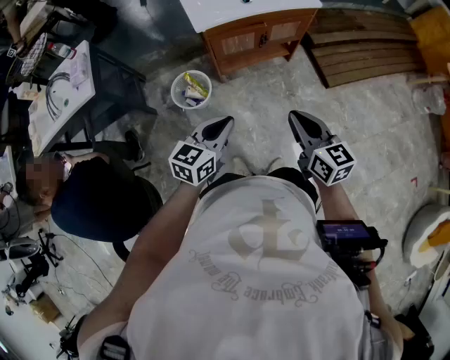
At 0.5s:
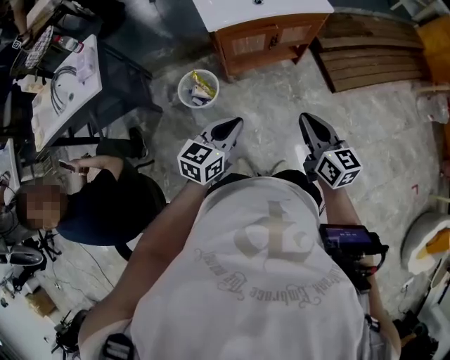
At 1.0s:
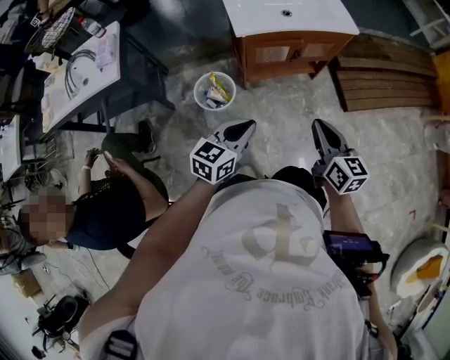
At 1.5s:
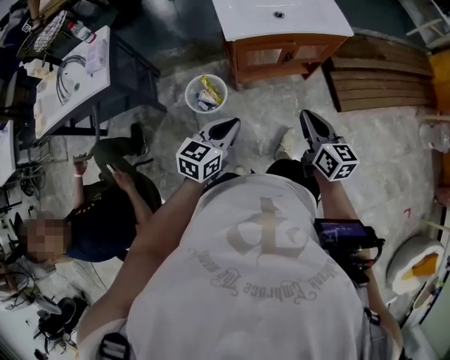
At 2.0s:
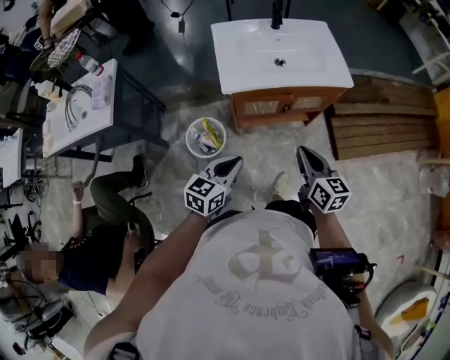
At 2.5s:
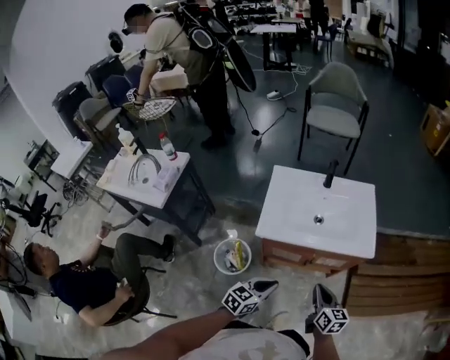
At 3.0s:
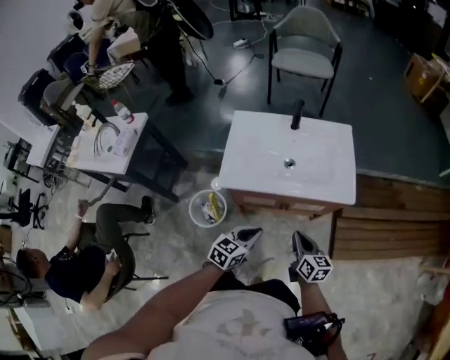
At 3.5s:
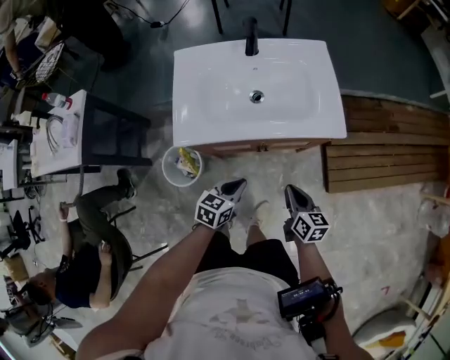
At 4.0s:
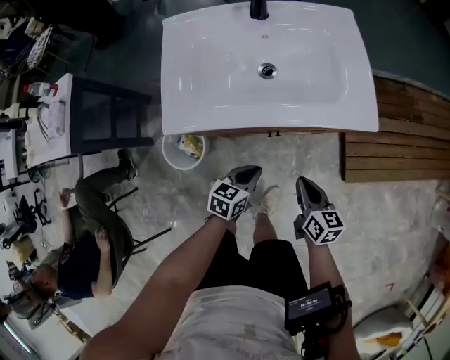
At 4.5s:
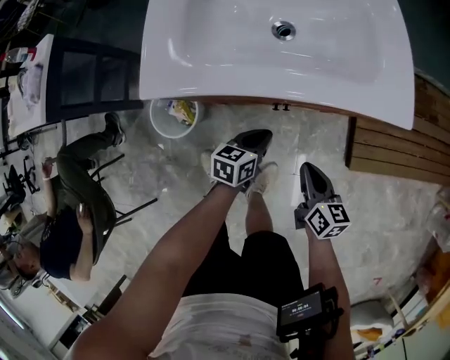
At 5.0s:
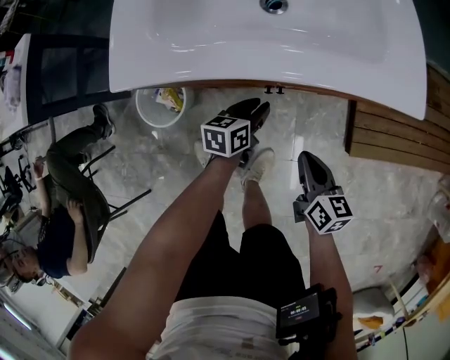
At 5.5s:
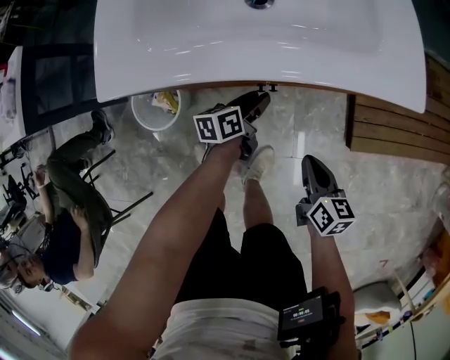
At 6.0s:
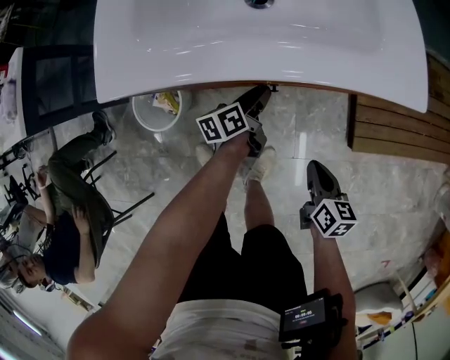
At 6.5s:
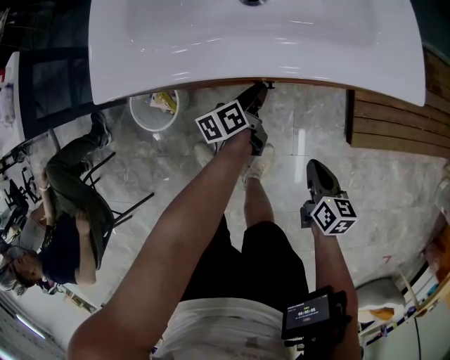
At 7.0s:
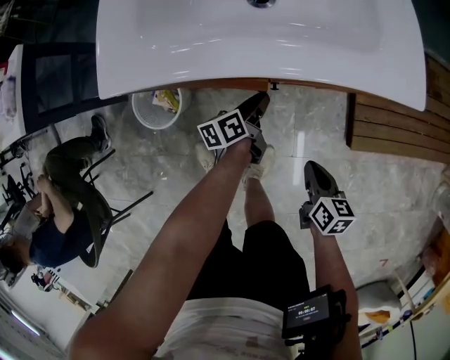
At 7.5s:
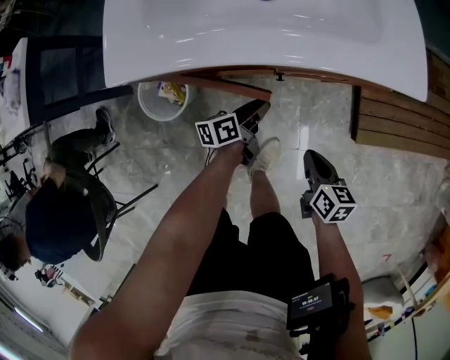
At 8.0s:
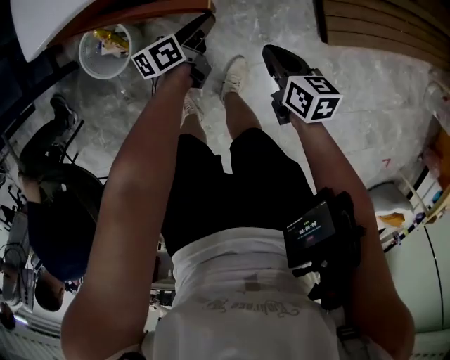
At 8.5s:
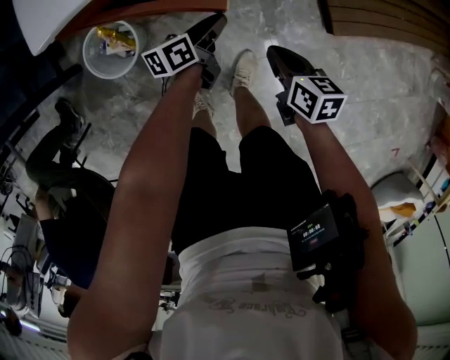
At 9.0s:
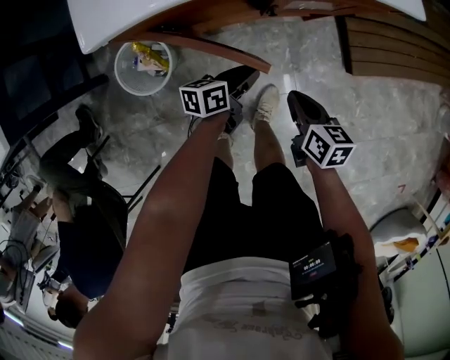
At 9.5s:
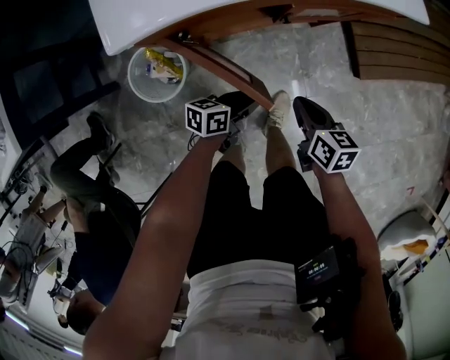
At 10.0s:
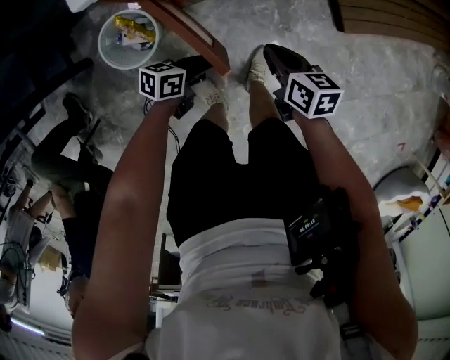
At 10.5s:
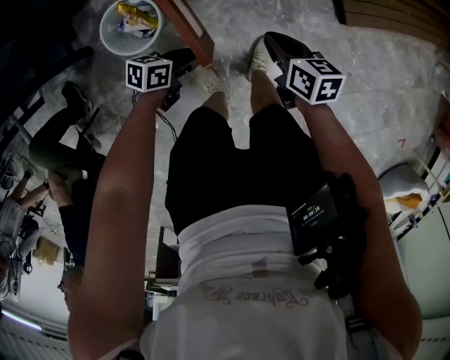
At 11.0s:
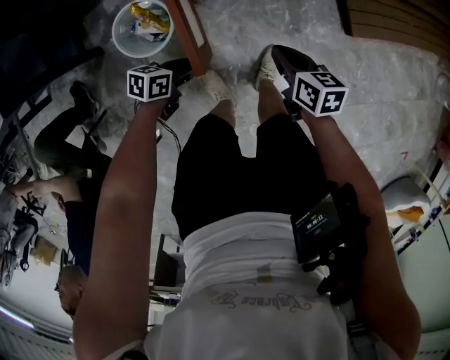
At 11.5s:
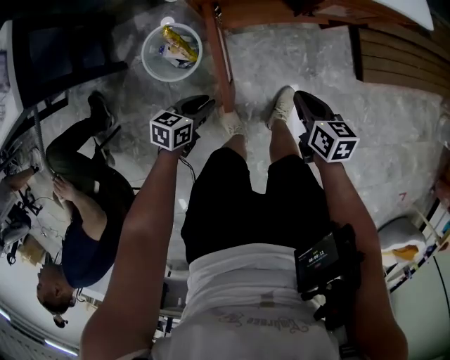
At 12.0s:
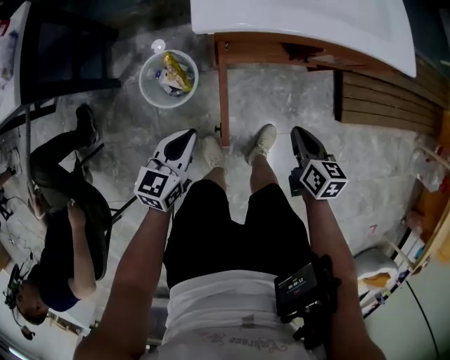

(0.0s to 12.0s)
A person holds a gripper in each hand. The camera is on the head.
0.0s - 2.0s: Both grippers move forward, about 20 cm.
2.0s - 4.0s: Both grippers travel together downward, forward and to the right, approximately 35 cm. The left gripper swivels approximately 20 degrees.
4.0s - 6.0s: The left gripper shifts roughly 20 cm downward and forward, rolls counterclockwise, seen from behind, by roughly 40 degrees, and opens its fingers; the right gripper goes about 15 cm downward.
6.0s - 8.0s: The right gripper shifts about 5 cm to the left, while the left gripper travels backward by some 10 cm.
8.0s - 10.0s: The right gripper travels to the left and backward by approximately 15 cm; the left gripper is displaced backward and to the left by about 20 cm, and changes its angle by about 40 degrees.
10.0s - 12.0s: The left gripper travels to the left and upward by approximately 20 cm, and swivels about 50 degrees. Meanwhile the right gripper shifts some 5 cm upward.

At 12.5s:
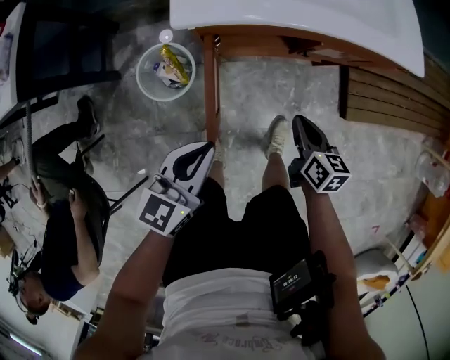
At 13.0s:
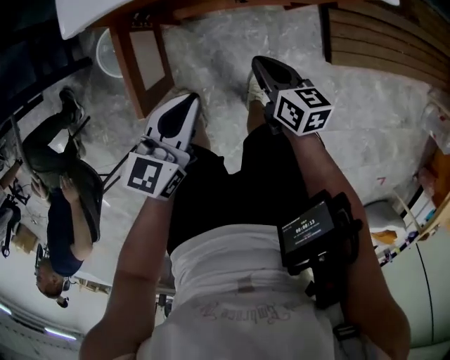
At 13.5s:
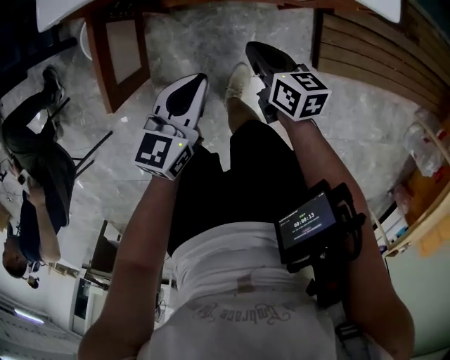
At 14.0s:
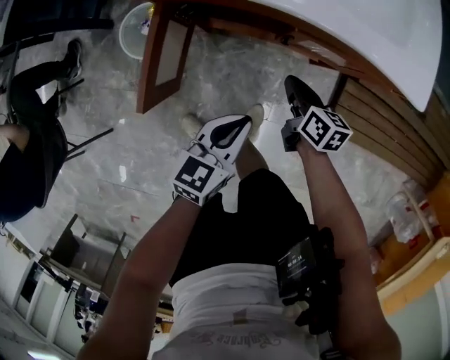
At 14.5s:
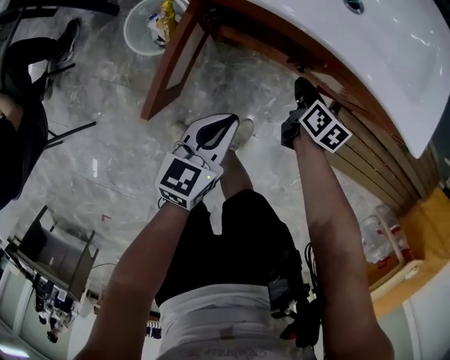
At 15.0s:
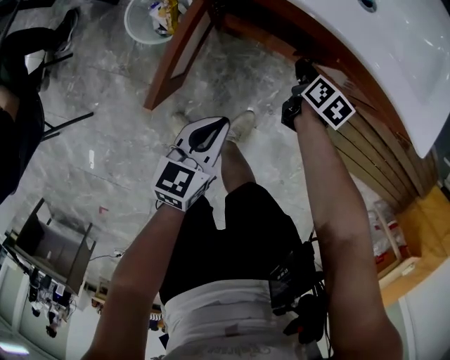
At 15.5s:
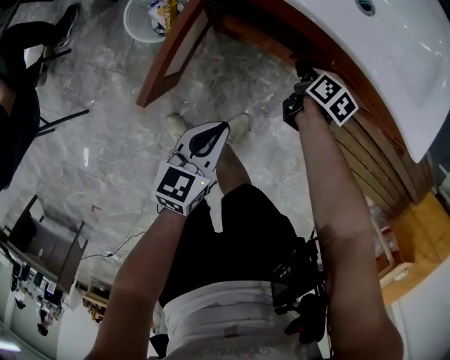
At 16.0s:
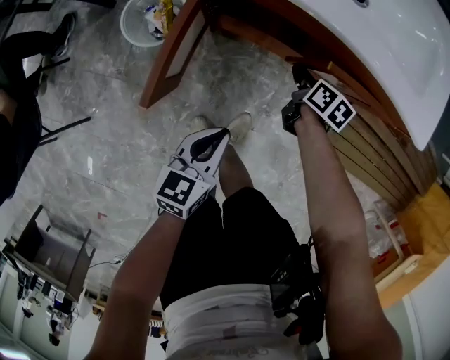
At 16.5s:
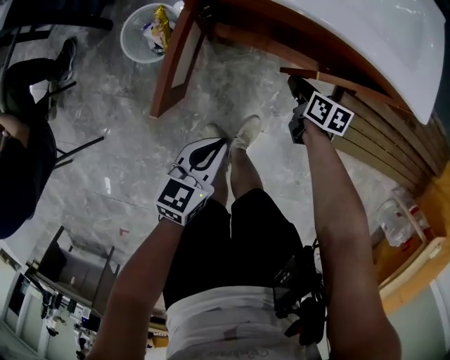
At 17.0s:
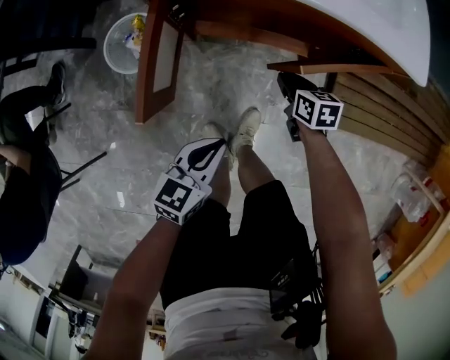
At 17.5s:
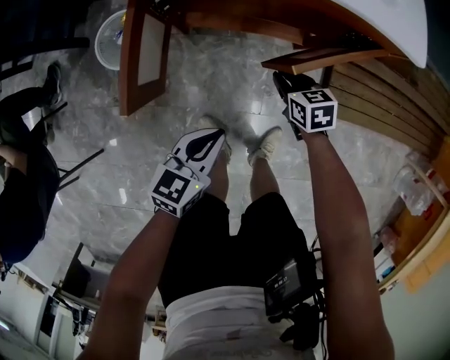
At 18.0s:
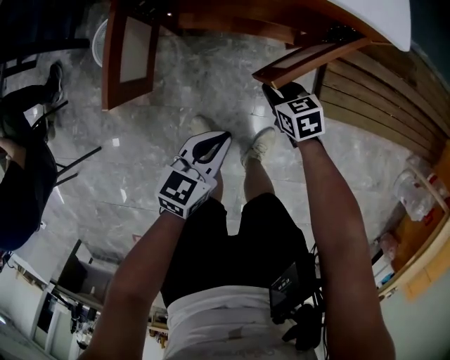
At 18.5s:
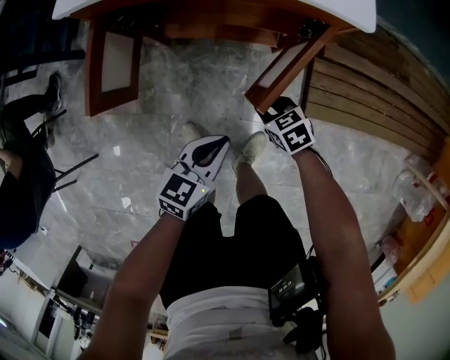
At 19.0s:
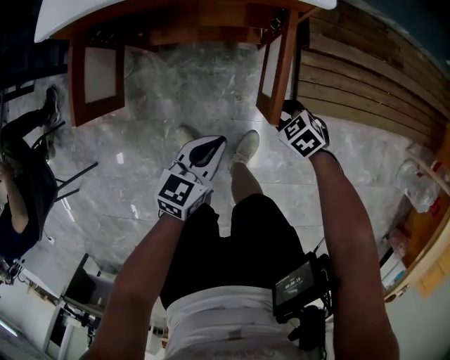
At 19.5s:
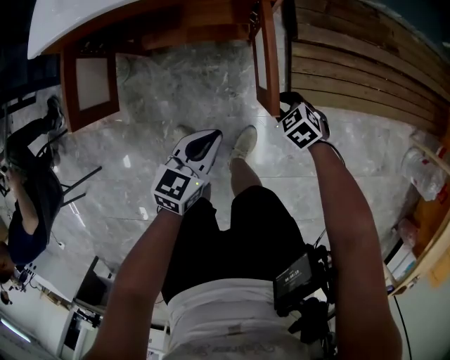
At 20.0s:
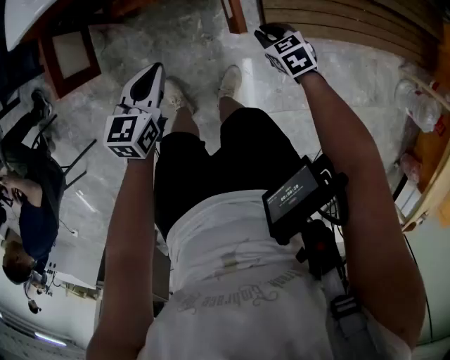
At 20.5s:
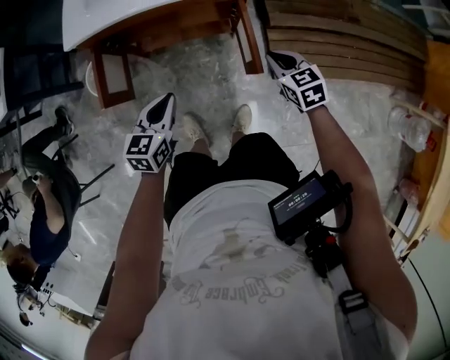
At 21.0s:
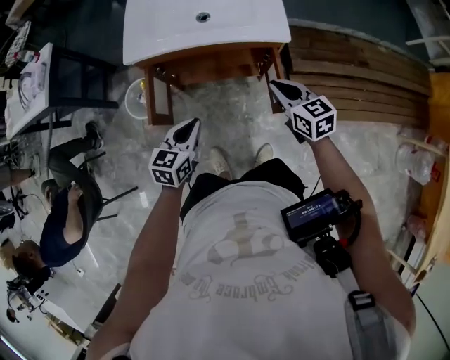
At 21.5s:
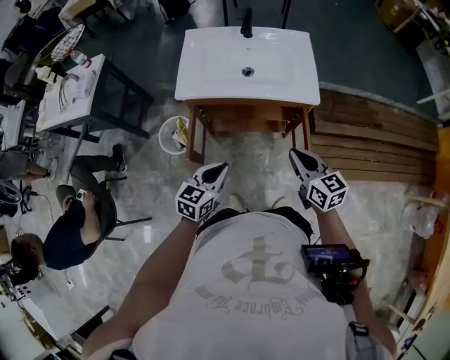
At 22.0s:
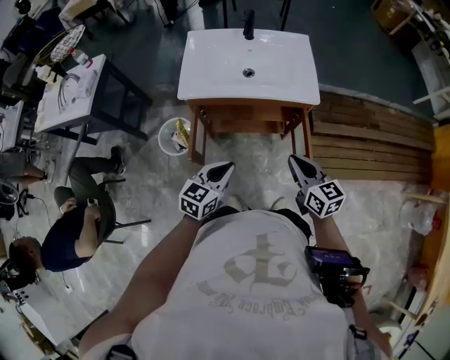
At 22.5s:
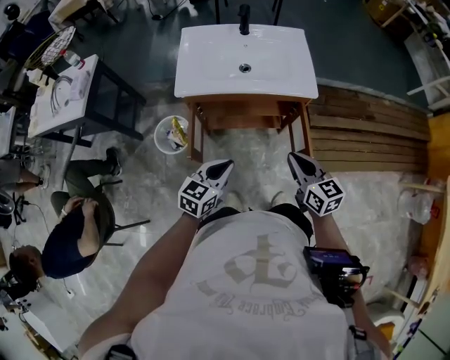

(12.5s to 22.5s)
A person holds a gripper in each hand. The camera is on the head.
12.5s - 14.5s: The right gripper shifts about 20 cm forward, downward and to the right; the left gripper goes about 20 cm to the right and downward, and turns by roughly 30 degrees.
14.5s - 16.5s: The left gripper goes approximately 10 cm backward, while the right gripper changes place by about 5 cm.
16.5s - 18.5s: The left gripper moves to the right, some 20 cm, while the right gripper moves backward and to the right, roughly 20 cm, and rotates approximately 40 degrees.
18.5s - 20.5s: The right gripper shifts roughly 30 cm upward and to the right, and rotates roughly 30 degrees. Meanwhile the left gripper is displaced upward by some 15 cm.
20.5s - 22.5s: The right gripper travels upward and to the left by some 25 cm, and rotates roughly 30 degrees. Meanwhile the left gripper travels upward and to the left by some 15 cm.

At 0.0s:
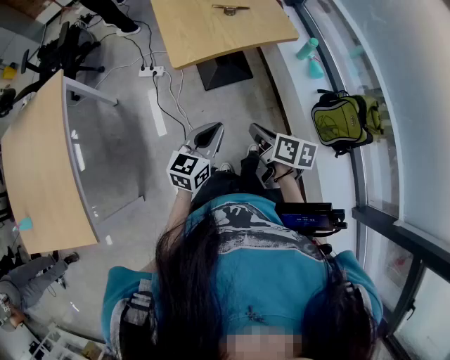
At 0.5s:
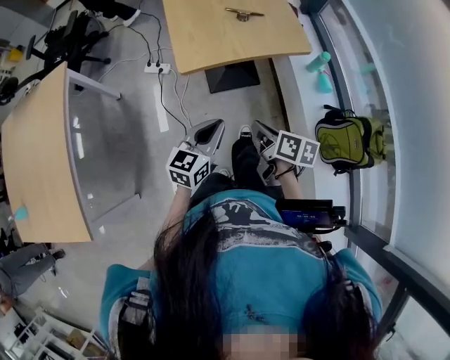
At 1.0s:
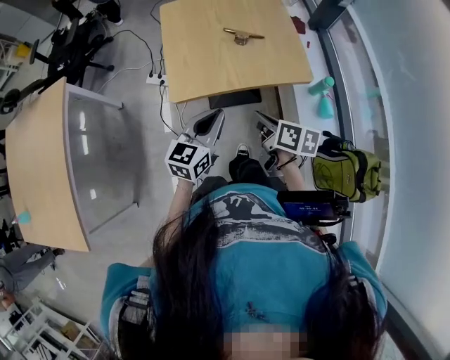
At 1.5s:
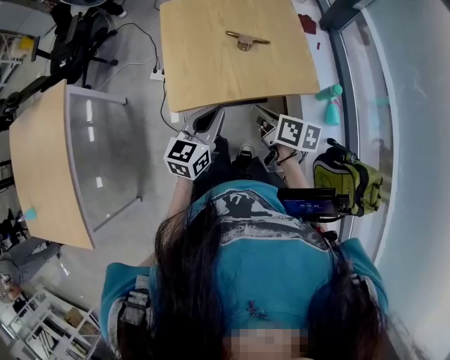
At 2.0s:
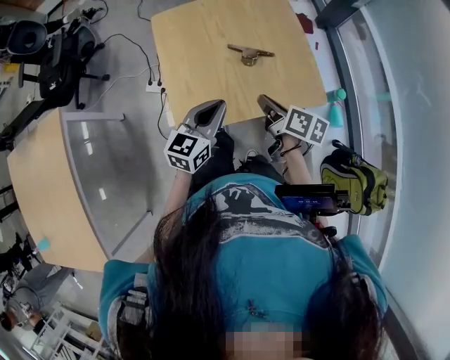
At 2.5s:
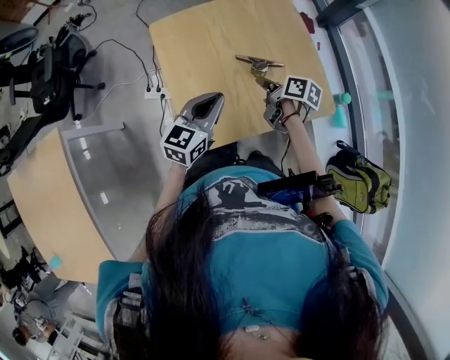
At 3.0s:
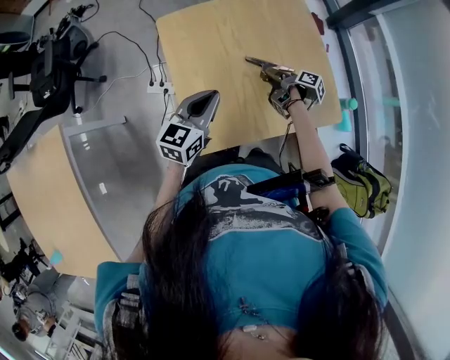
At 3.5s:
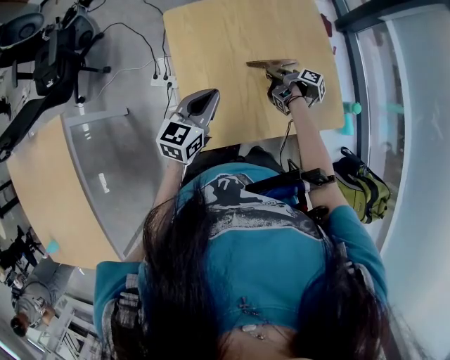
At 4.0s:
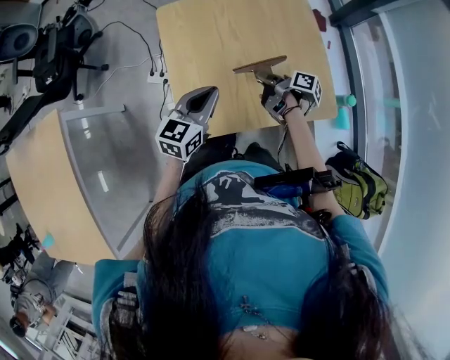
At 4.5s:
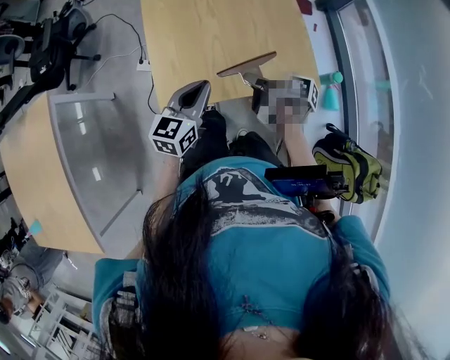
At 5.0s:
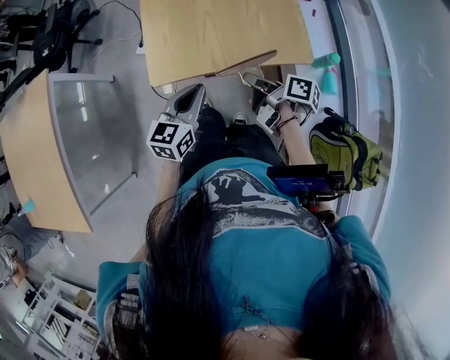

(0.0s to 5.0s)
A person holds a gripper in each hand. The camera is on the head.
0.0s - 2.5s: The left gripper changes place by roughly 50 cm.
2.5s - 5.0s: The left gripper ends up approximately 20 cm from where it was.
